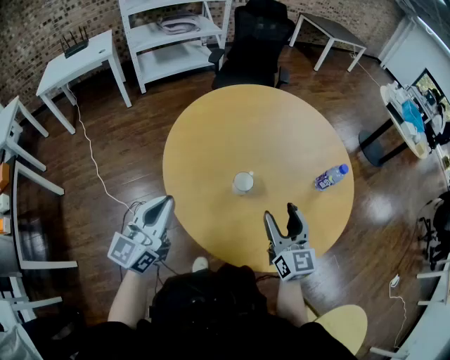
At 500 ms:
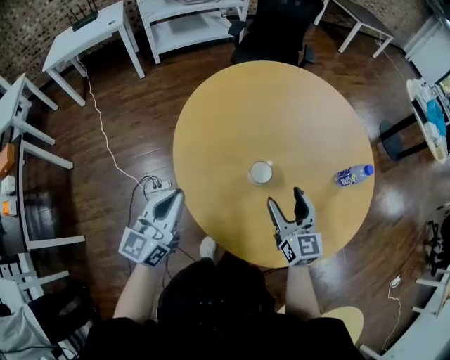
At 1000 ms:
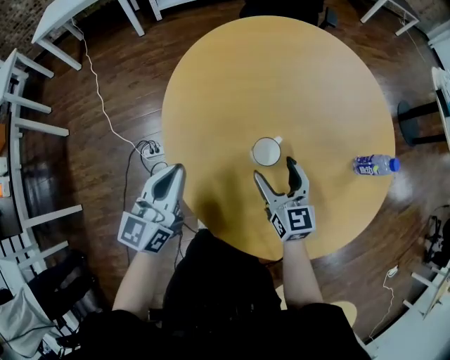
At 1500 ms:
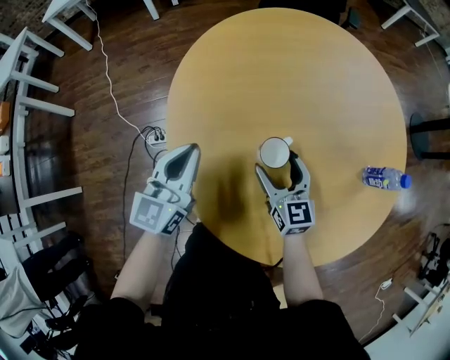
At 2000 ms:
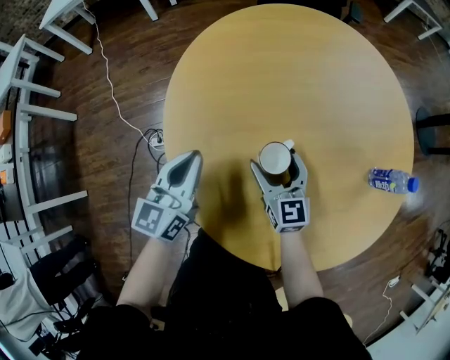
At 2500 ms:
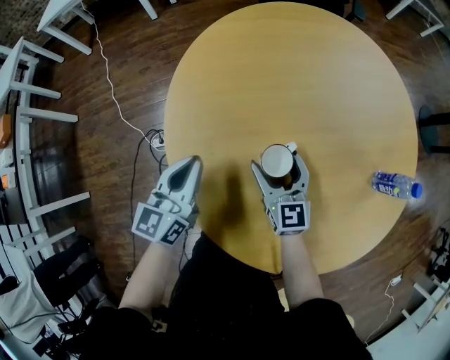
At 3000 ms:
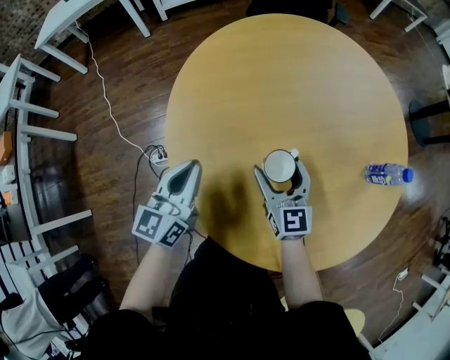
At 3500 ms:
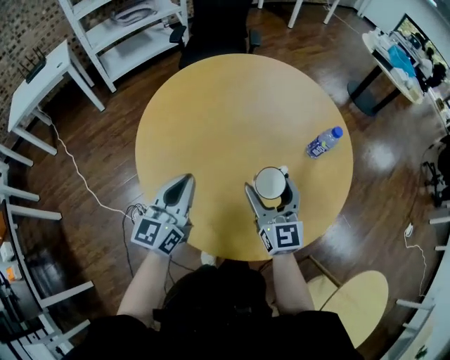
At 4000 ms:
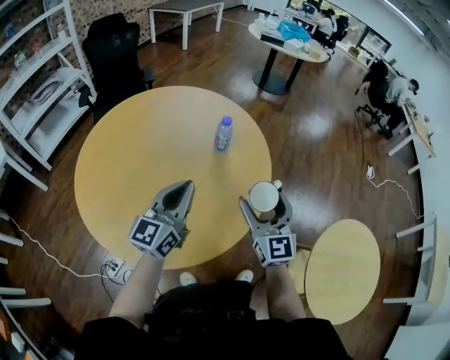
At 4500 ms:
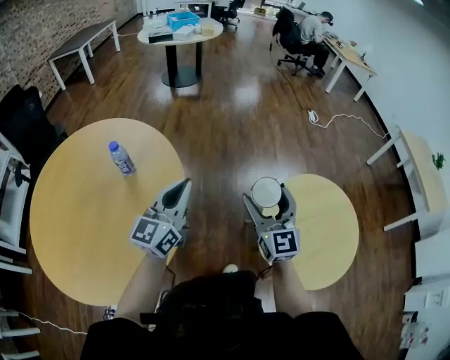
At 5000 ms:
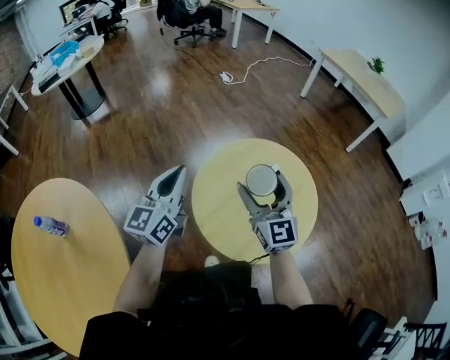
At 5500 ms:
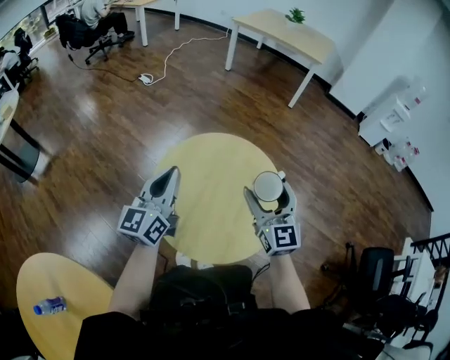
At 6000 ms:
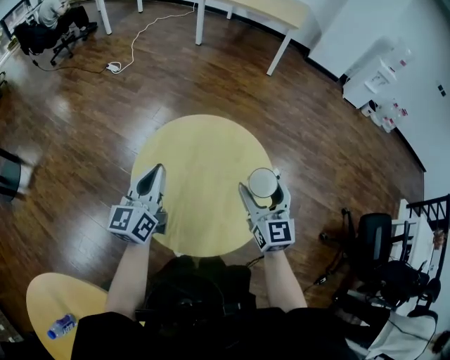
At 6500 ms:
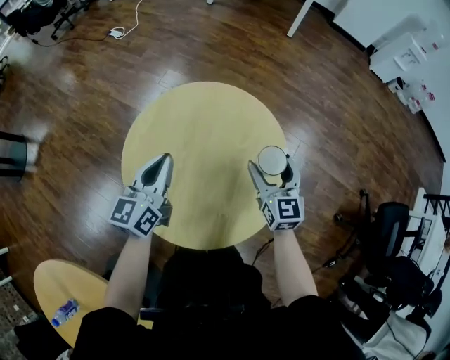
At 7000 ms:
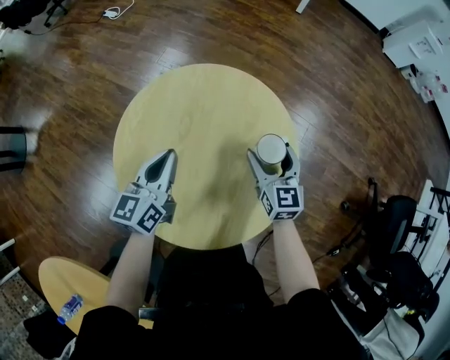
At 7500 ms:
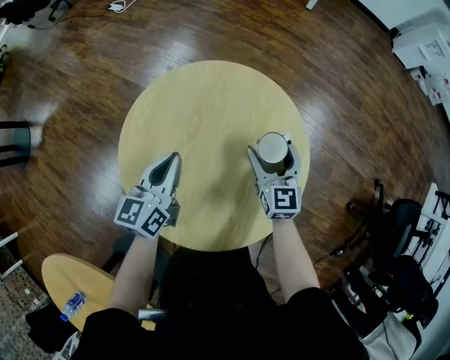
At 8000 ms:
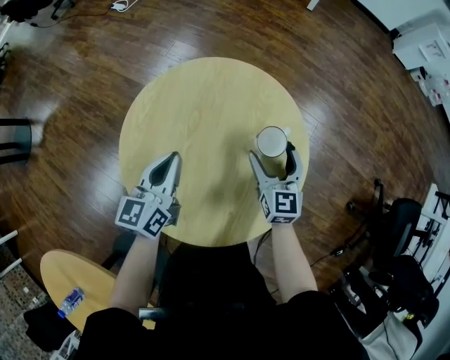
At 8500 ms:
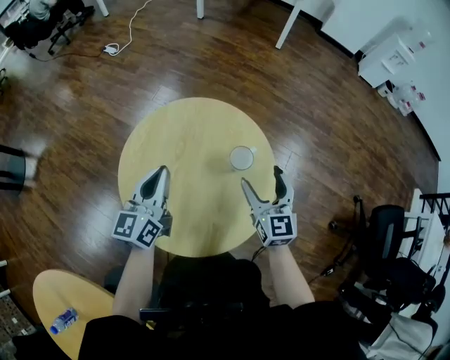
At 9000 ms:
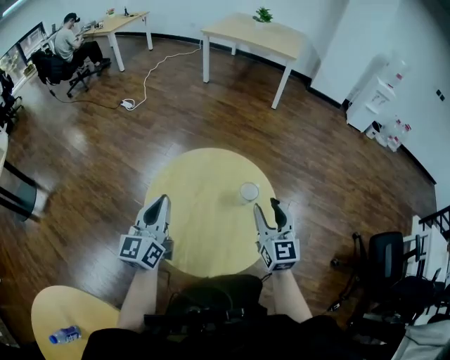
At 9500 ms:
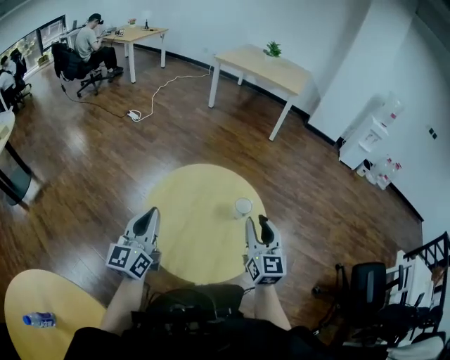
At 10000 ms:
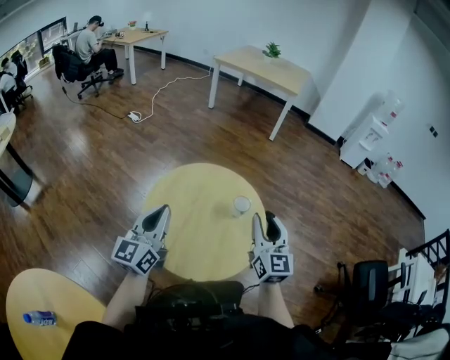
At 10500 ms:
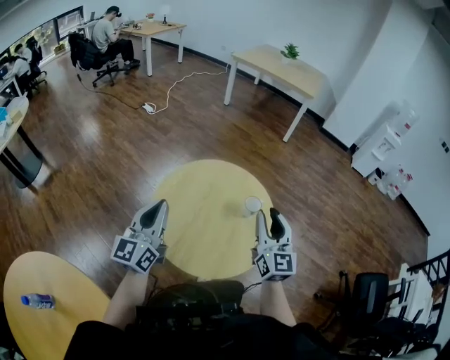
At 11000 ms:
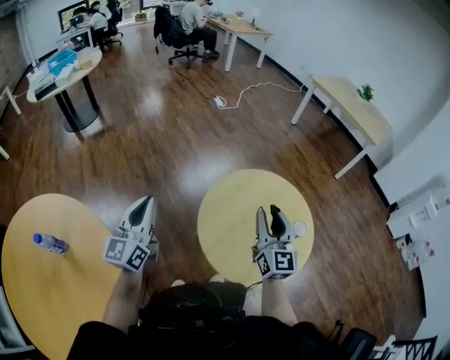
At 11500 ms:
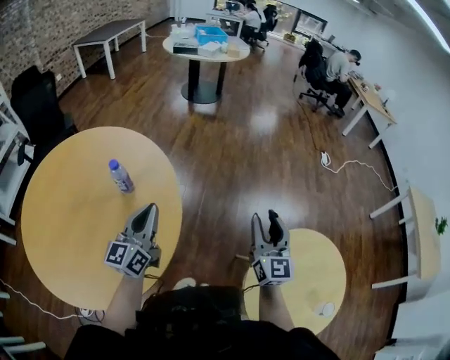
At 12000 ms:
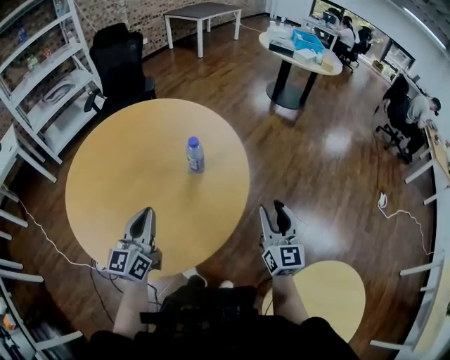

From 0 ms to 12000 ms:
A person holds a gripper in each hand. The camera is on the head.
From 0 ms to 2000 ms: Both grippers travel together downward and forward, some 20 cm. The left gripper turns by about 20 degrees.
From 2000 ms to 4000 ms: The right gripper ends up about 40 cm from where it was, and rotates some 60 degrees; the left gripper moves about 35 cm, and rotates roughly 50 degrees.
From 4000 ms to 6000 ms: Both grippers are carried some 70 cm. The right gripper swivels some 90 degrees, while the left gripper turns by some 80 degrees.
From 6000 ms to 8000 ms: The two grippers go some 15 cm downward.
From 8000 ms to 10000 ms: Both grippers travel together upward and backward, some 25 cm. The right gripper turns by about 20 degrees, and closes up. The left gripper changes its angle by about 30 degrees.
From 10000 ms to 12000 ms: The right gripper moves about 60 cm, and changes its angle by roughly 100 degrees; the left gripper changes place by about 60 cm, and swivels about 110 degrees.

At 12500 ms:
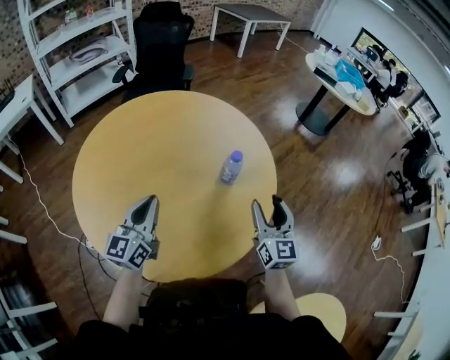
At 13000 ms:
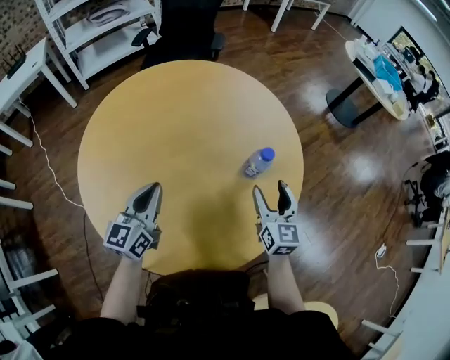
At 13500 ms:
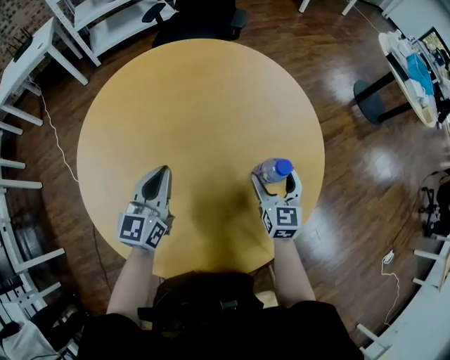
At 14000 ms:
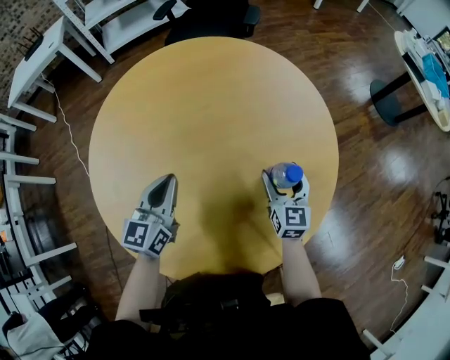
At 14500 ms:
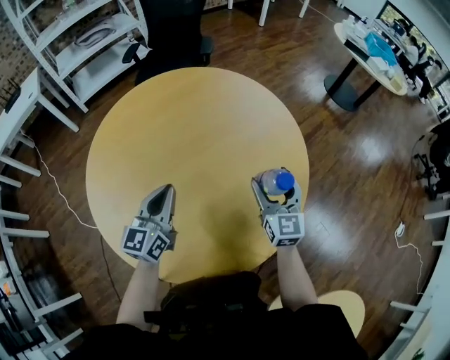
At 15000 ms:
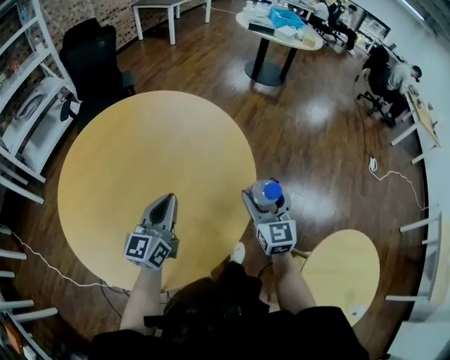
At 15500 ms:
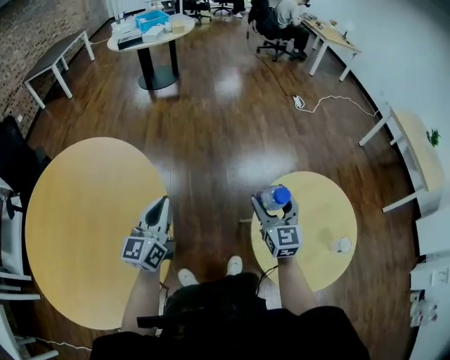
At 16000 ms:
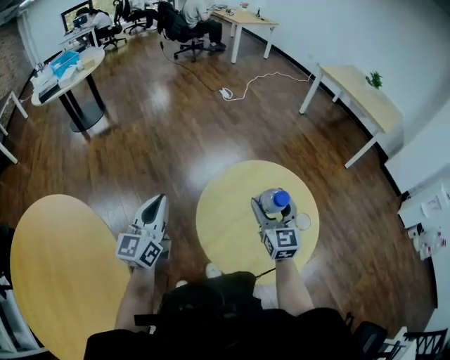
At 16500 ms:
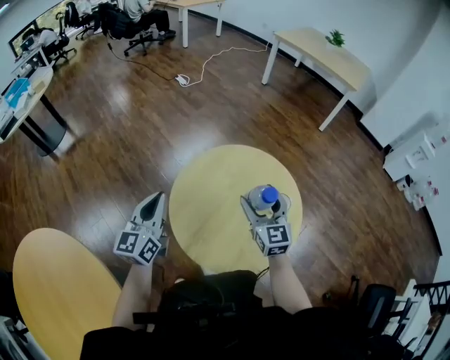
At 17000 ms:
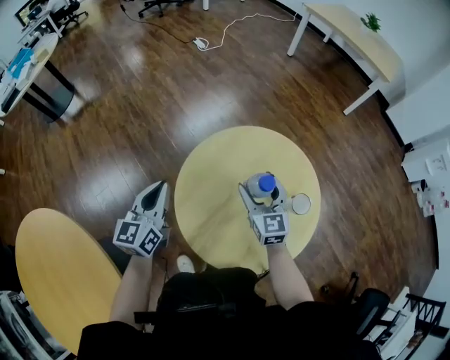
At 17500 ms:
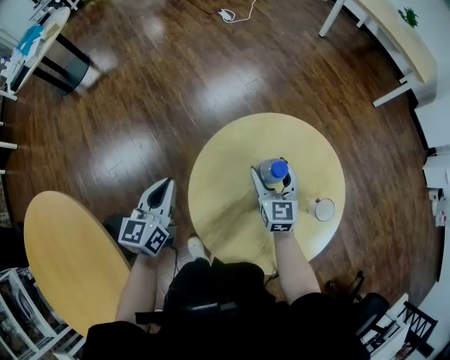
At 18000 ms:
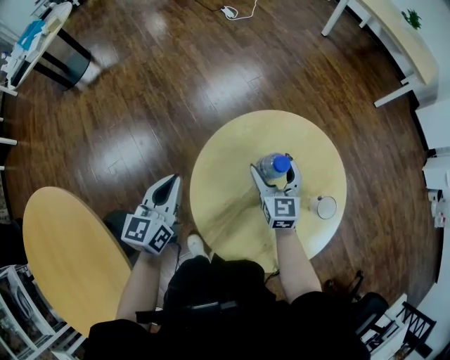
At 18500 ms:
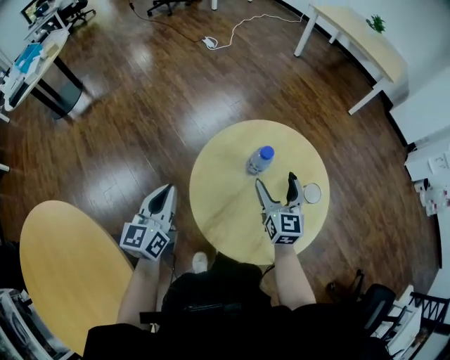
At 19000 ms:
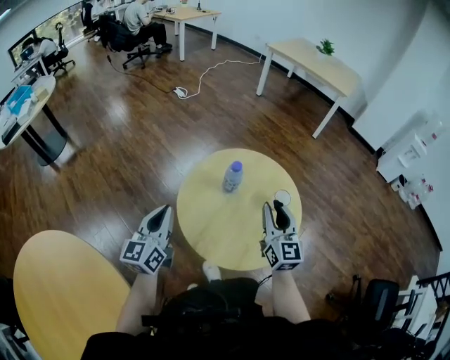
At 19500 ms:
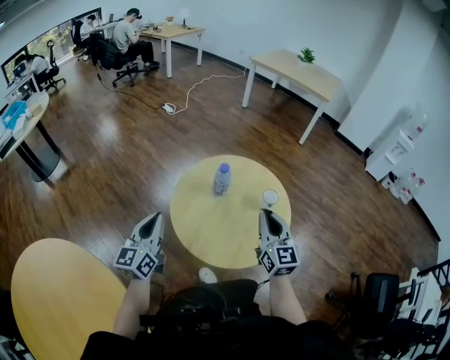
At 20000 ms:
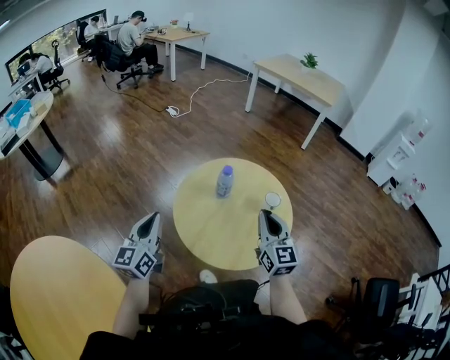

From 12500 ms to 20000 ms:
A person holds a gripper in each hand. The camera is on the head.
From 12500 ms to 14500 ms: The left gripper is displaced forward by about 5 cm. The right gripper is displaced forward, to the left and downward by approximately 15 cm.
From 14500 ms to 16500 ms: Both grippers are carried roughly 80 cm. The right gripper changes its angle by about 90 degrees. Meanwhile the left gripper changes its angle by approximately 90 degrees.
From 16500 ms to 18000 ms: The left gripper travels downward by about 10 cm, while the right gripper goes about 20 cm downward, forward and to the left.
From 18000 ms to 20000 ms: The left gripper heads backward and upward, covering some 15 cm, and swivels approximately 20 degrees, while the right gripper is displaced backward, upward and to the right by some 30 cm, changes its angle by roughly 20 degrees, and closes its fingers.

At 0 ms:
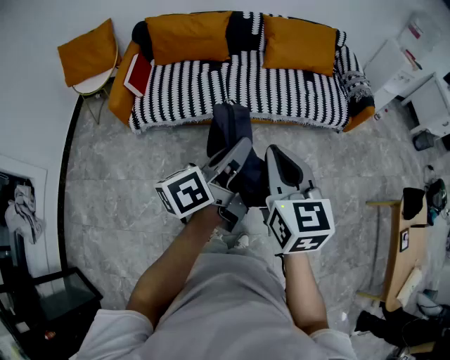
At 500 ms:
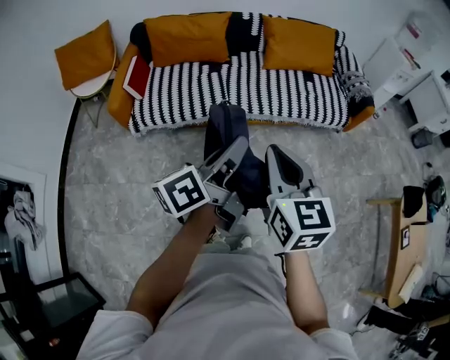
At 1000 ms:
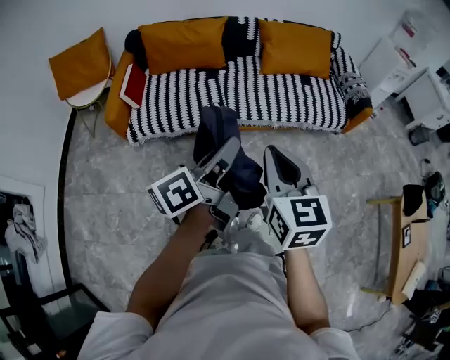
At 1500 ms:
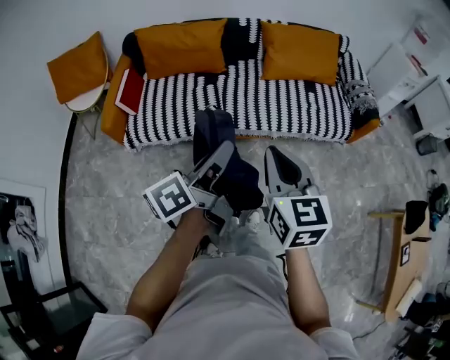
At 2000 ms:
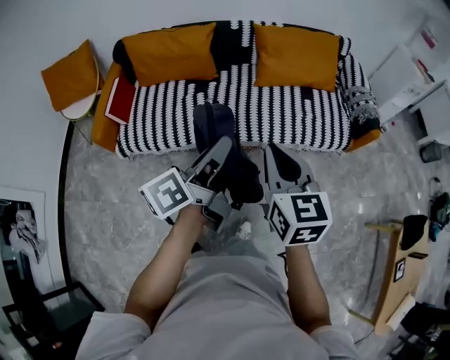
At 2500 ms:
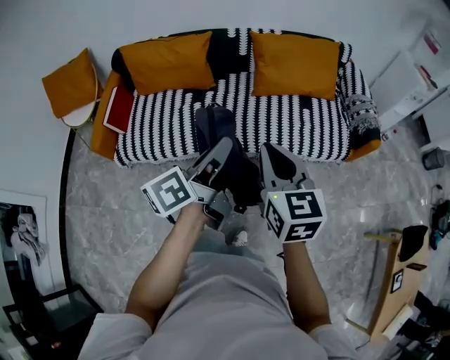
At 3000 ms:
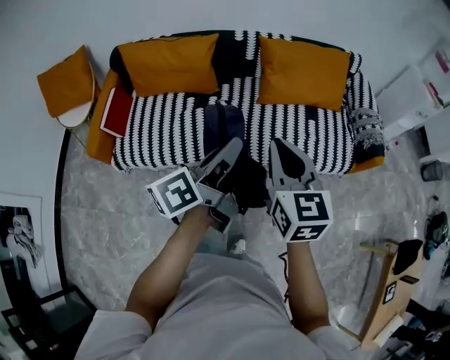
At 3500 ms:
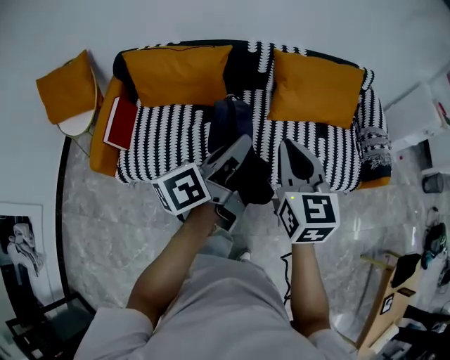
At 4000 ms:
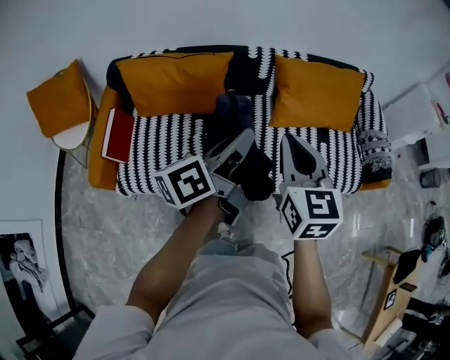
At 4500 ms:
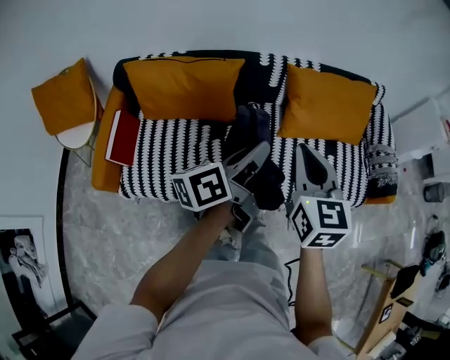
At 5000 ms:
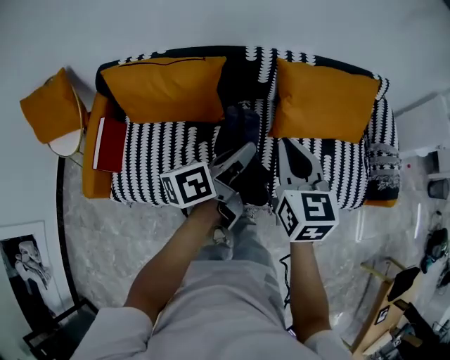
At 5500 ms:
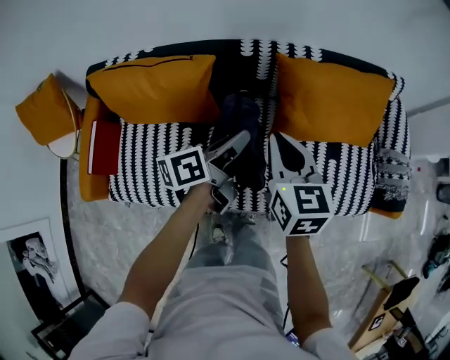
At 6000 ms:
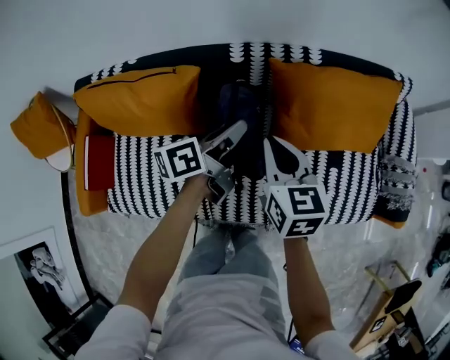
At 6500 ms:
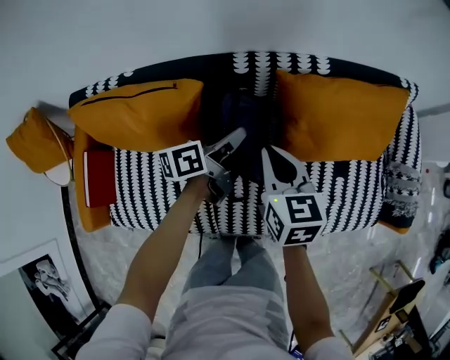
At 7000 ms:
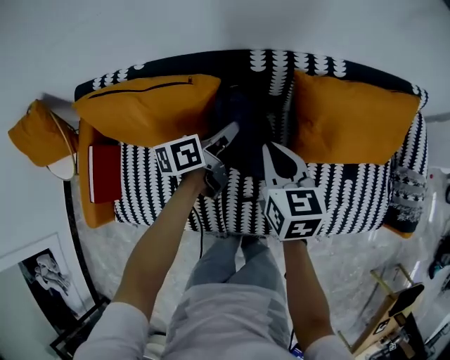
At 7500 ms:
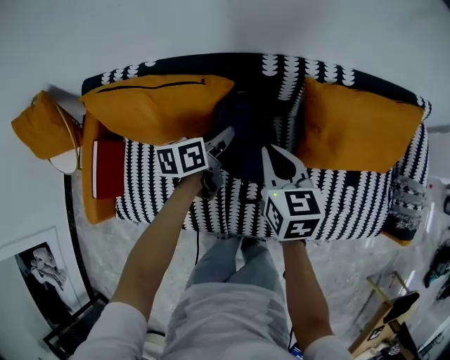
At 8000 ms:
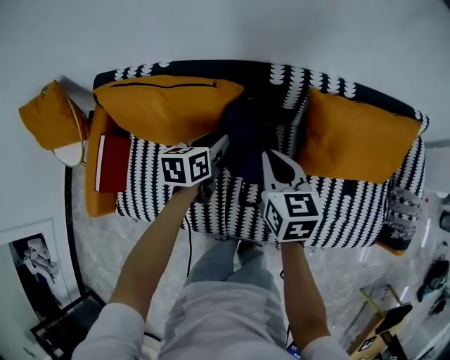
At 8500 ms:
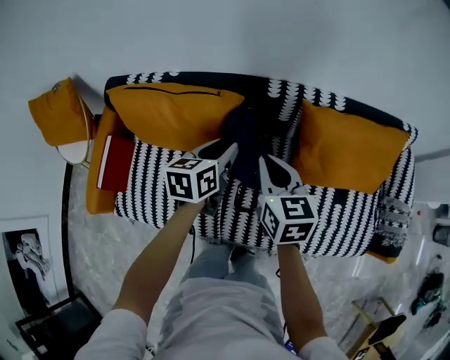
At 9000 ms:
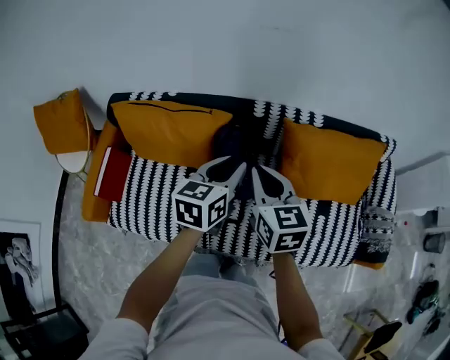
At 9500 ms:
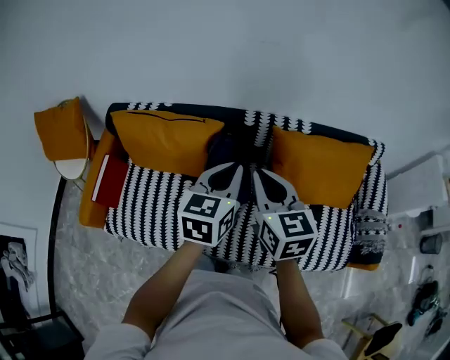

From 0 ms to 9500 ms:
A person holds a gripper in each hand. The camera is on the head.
From 0 ms to 2000 ms: Both grippers travel together forward, roughly 25 cm.
From 2000 ms to 4000 ms: Both grippers move forward, about 30 cm.
From 4000 ms to 5500 ms: The grippers both shift forward and downward by about 25 cm.
From 5500 ms to 7500 ms: The right gripper shifts some 15 cm forward, downward and to the left, while the left gripper travels downward, forward and to the left by roughly 25 cm, and rotates approximately 20 degrees.
From 7500 ms to 9500 ms: Both grippers travel together upward and backward, some 25 cm. The left gripper changes its angle by about 40 degrees.
